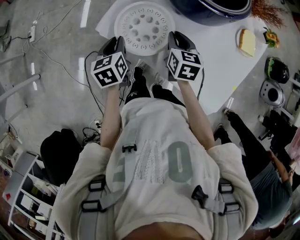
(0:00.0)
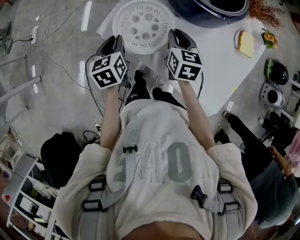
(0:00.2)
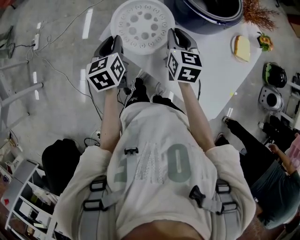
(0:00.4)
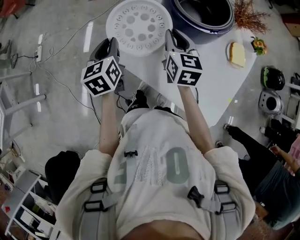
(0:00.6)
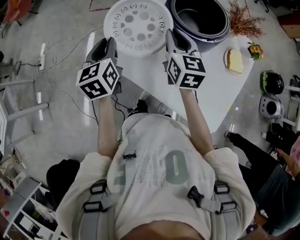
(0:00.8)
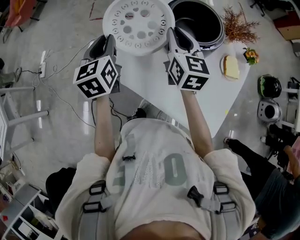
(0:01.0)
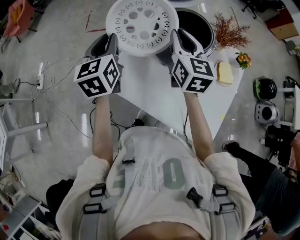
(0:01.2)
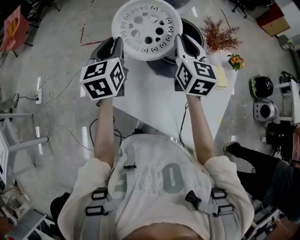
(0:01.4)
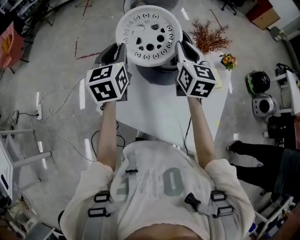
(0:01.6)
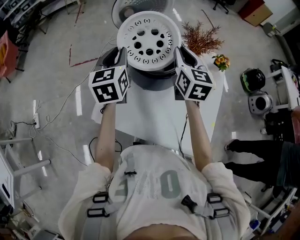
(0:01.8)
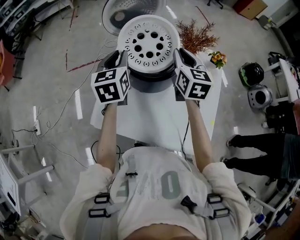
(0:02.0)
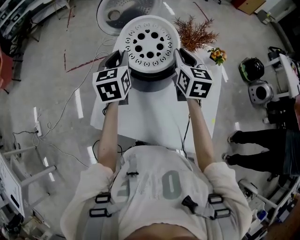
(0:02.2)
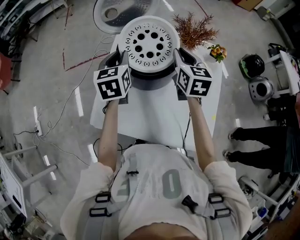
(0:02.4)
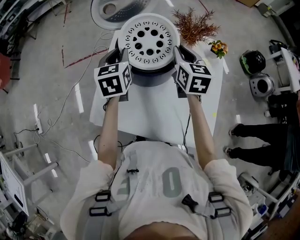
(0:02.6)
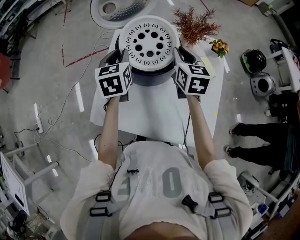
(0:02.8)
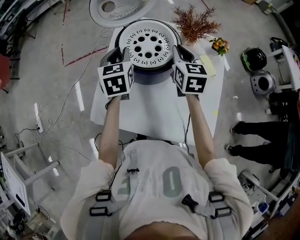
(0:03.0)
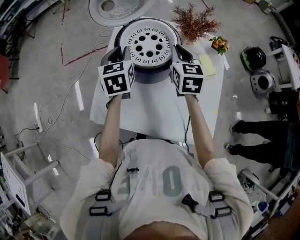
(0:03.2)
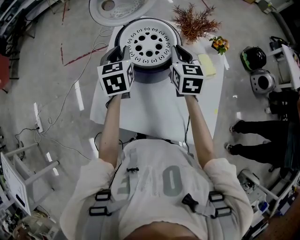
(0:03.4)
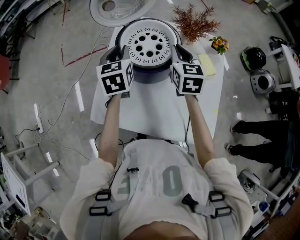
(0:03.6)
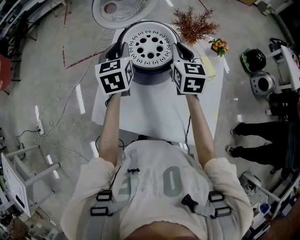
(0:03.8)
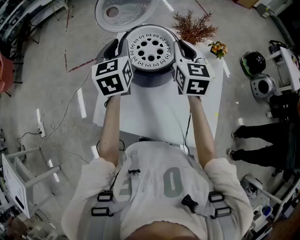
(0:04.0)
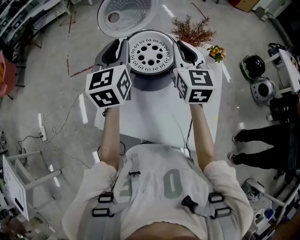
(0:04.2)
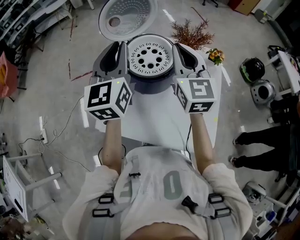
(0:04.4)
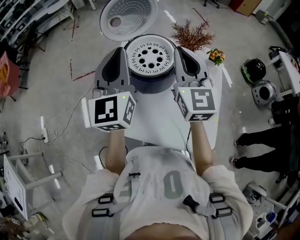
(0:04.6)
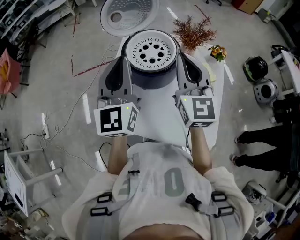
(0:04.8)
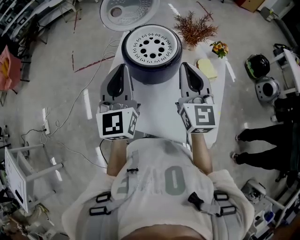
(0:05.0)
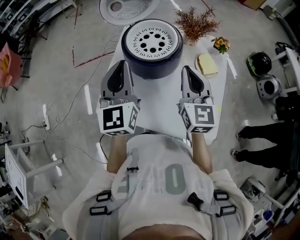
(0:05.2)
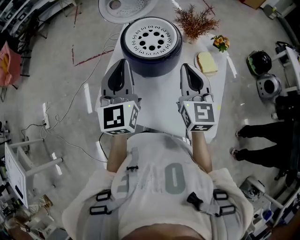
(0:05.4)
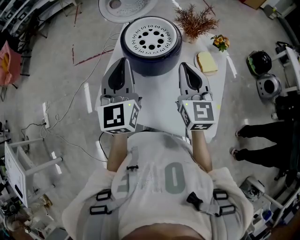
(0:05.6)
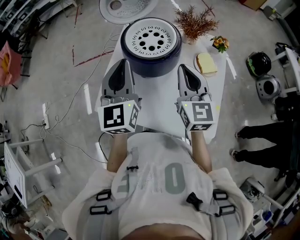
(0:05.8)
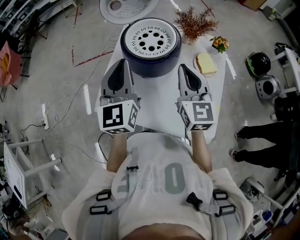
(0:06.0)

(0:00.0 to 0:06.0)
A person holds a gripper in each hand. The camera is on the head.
0:00.0 - 0:01.6: The left gripper shifts roughly 35 cm upward, forward and to the right, and swivels approximately 40 degrees; the right gripper heads upward and to the right, covering roughly 30 cm, and turns by some 30 degrees.
0:01.6 - 0:03.0: The right gripper moves downward and to the right, approximately 10 cm; the left gripper goes some 15 cm downward, to the right and forward.
0:03.0 - 0:04.4: The left gripper shifts roughly 20 cm upward, and tips its fingers upward by approximately 30 degrees, while the right gripper is displaced upward and backward by roughly 15 cm, and swivels roughly 30 degrees.
0:04.4 - 0:06.0: Both grippers travel together backward and downward, roughly 10 cm.

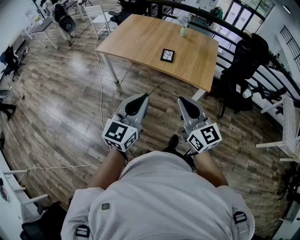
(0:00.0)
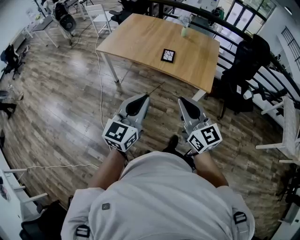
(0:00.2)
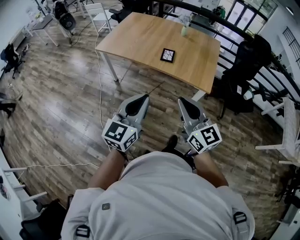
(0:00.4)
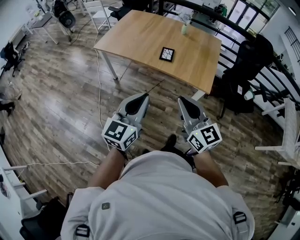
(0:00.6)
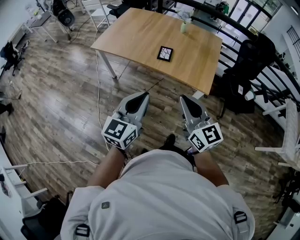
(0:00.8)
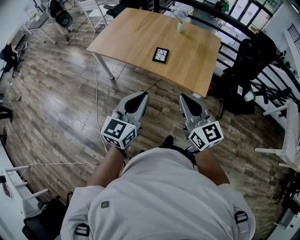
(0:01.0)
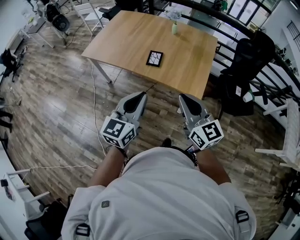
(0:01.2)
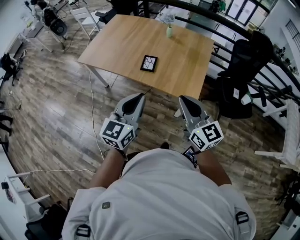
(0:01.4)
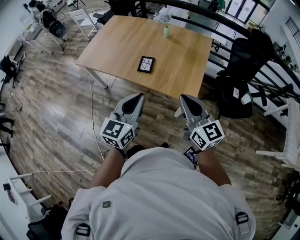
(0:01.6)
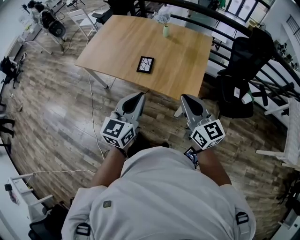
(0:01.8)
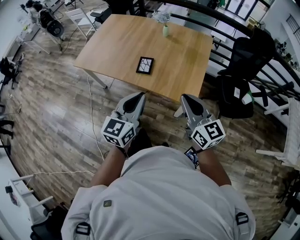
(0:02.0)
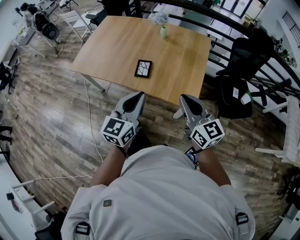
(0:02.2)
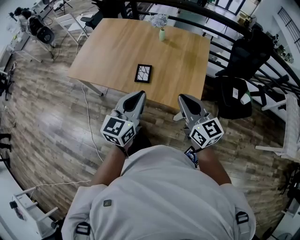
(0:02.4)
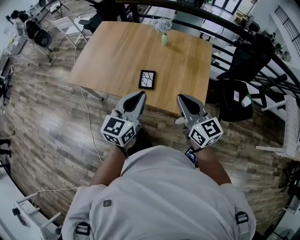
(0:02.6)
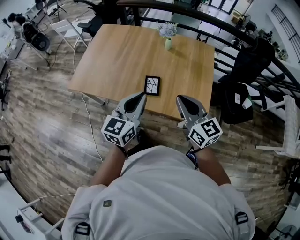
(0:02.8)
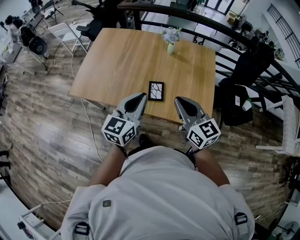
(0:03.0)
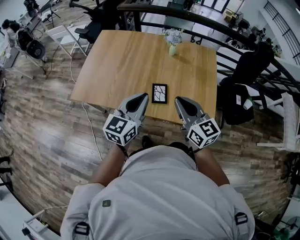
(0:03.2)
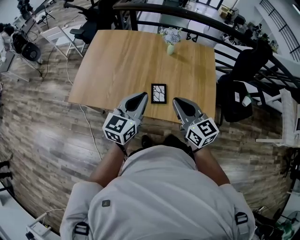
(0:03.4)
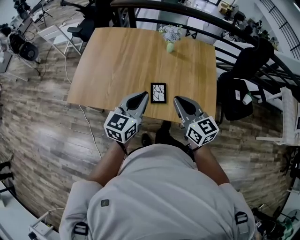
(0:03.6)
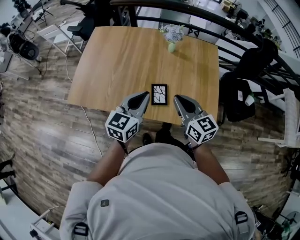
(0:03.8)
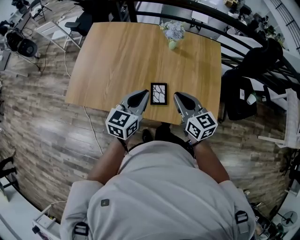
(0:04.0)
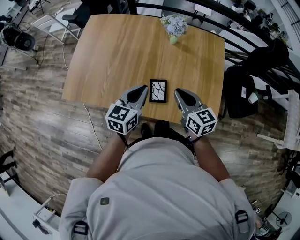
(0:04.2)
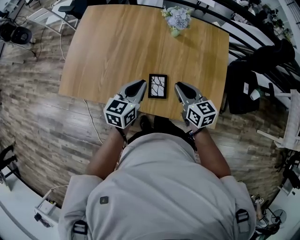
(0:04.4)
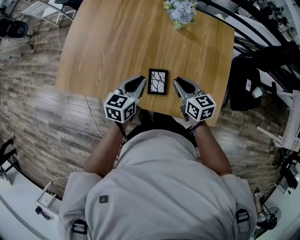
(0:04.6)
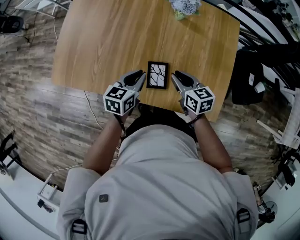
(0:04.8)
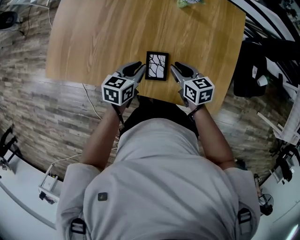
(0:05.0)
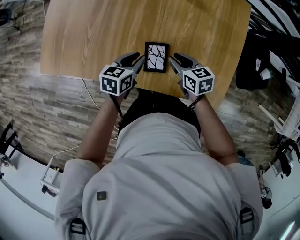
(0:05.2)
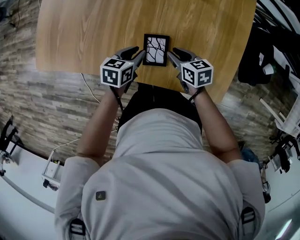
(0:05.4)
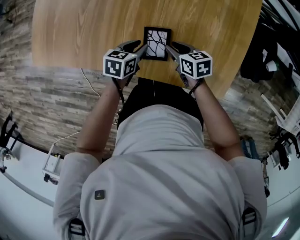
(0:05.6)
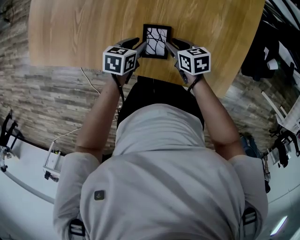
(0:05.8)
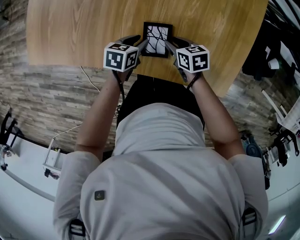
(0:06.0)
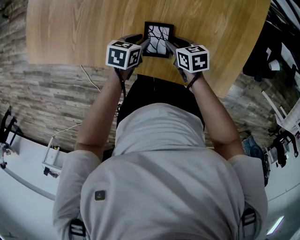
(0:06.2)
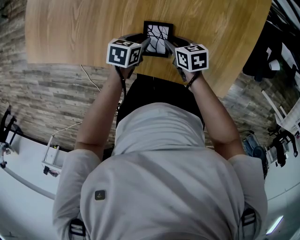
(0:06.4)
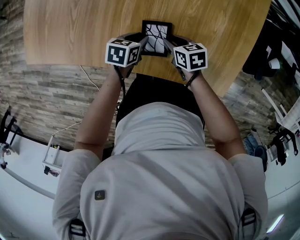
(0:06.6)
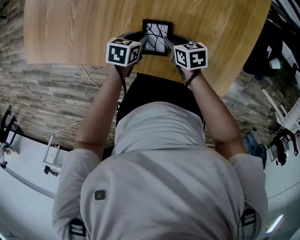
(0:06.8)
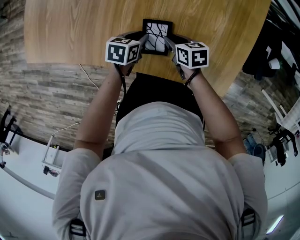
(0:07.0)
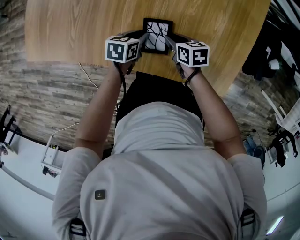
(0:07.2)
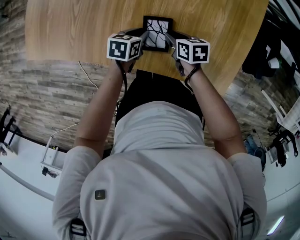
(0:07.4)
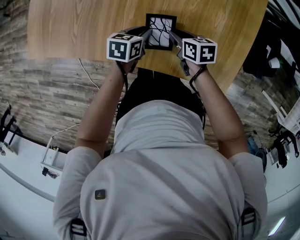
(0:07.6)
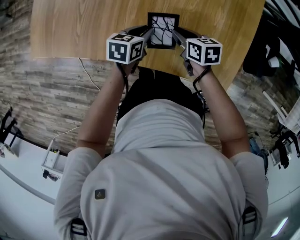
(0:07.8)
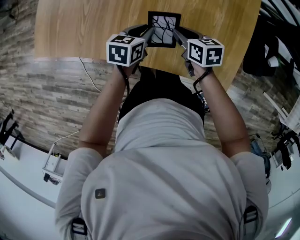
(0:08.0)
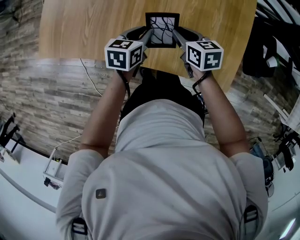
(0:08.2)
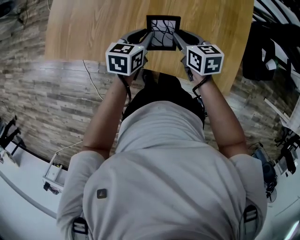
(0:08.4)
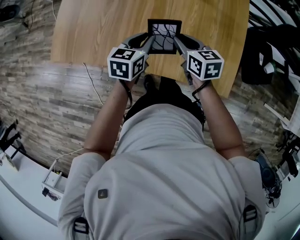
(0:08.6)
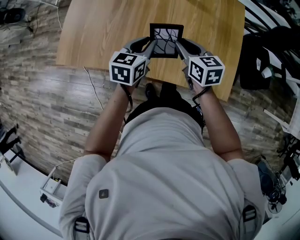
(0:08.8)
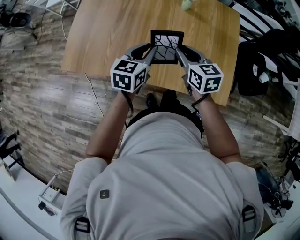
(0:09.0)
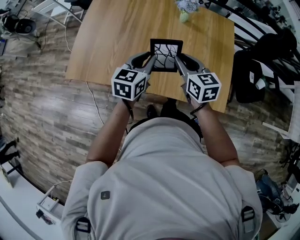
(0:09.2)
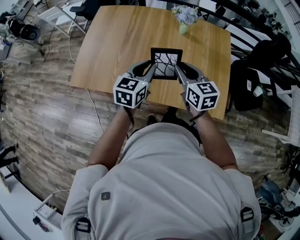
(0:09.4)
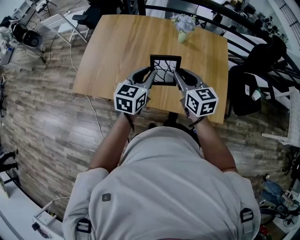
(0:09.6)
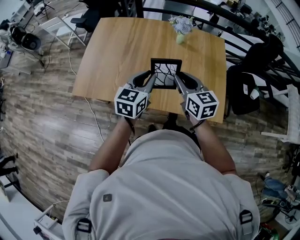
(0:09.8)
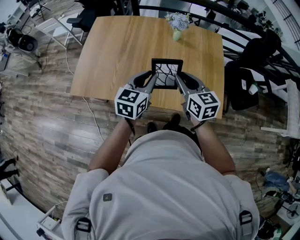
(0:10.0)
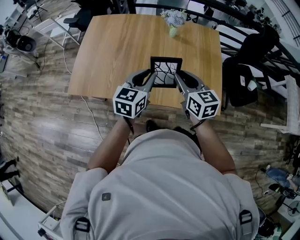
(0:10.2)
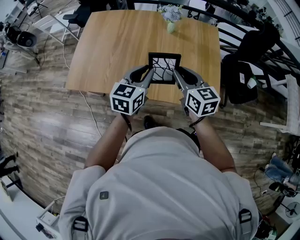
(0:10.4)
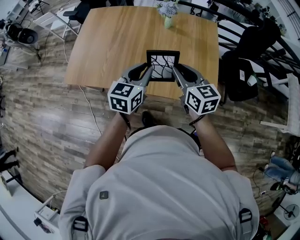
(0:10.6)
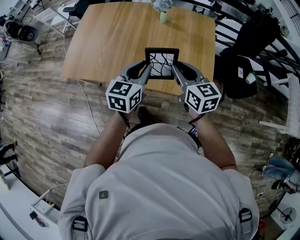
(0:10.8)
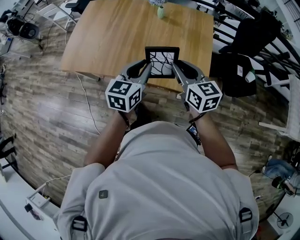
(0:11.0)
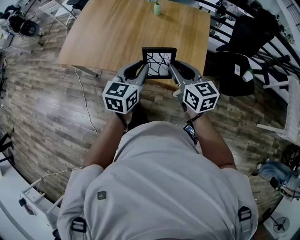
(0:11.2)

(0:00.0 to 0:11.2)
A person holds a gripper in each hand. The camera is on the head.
0:00.0 - 0:01.6: The left gripper goes about 30 cm forward and to the right. The right gripper moves to the right and forward, about 30 cm.
0:01.6 - 0:03.2: Both grippers travel together forward and to the left, some 30 cm.
0:03.2 - 0:04.8: The grippers both shift downward and forward by about 30 cm. The right gripper turns by some 30 degrees; the left gripper swivels some 30 degrees.
0:04.8 - 0:06.4: Both grippers travel together downward, roughly 20 cm. The left gripper rotates approximately 30 degrees, while the right gripper changes its angle by about 30 degrees.
0:06.4 - 0:08.0: The two grippers go roughly 10 cm upward.
0:08.0 - 0:09.6: Both grippers move upward, approximately 30 cm. The right gripper turns by approximately 40 degrees; the left gripper turns by roughly 30 degrees.
0:09.6 - 0:11.2: The grippers both shift to the right and backward by roughly 25 cm.

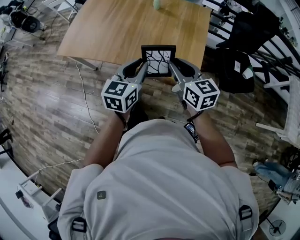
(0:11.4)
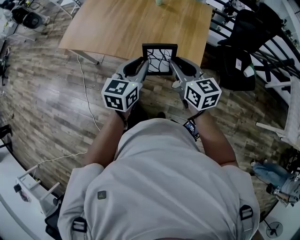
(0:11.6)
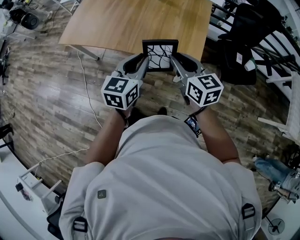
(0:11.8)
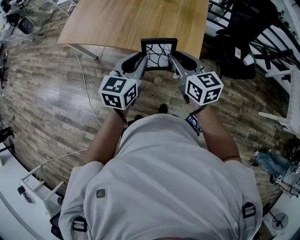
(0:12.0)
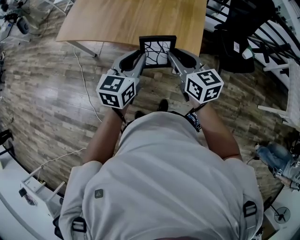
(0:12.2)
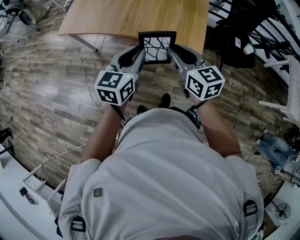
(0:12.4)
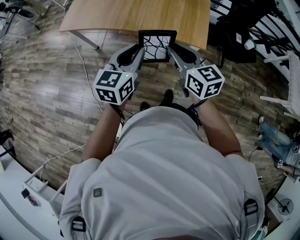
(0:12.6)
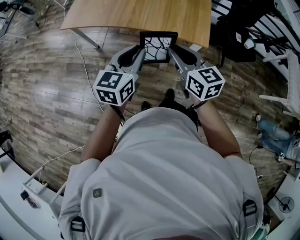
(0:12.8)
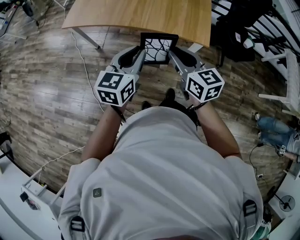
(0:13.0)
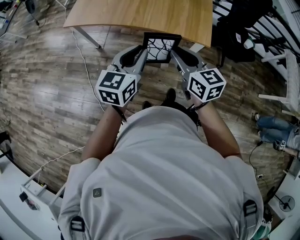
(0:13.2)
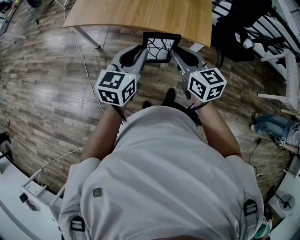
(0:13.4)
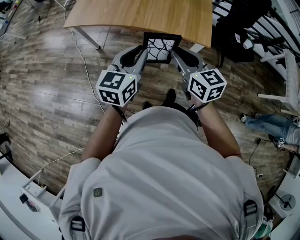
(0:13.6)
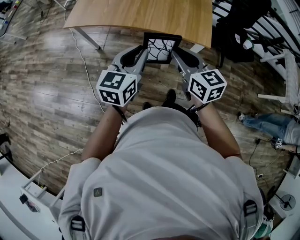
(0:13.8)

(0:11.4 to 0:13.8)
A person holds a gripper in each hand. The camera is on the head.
0:11.4 - 0:12.6: The two grippers go roughly 20 cm backward and to the left.
0:12.6 - 0:13.8: The grippers both shift to the left by roughly 5 cm.

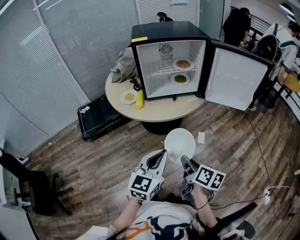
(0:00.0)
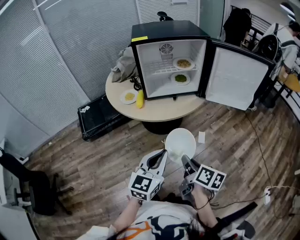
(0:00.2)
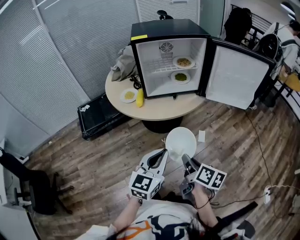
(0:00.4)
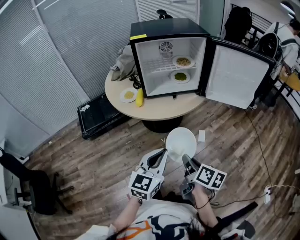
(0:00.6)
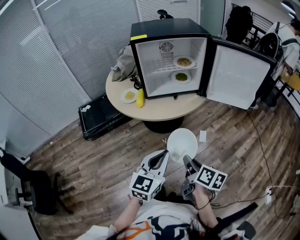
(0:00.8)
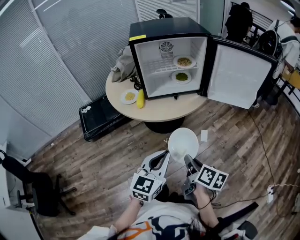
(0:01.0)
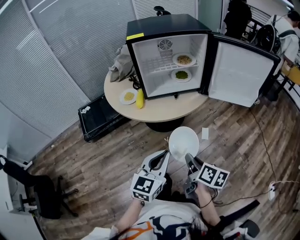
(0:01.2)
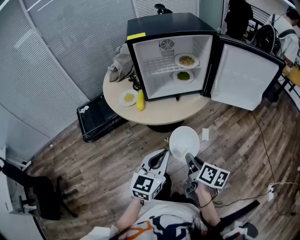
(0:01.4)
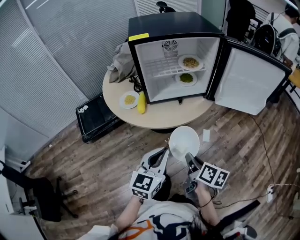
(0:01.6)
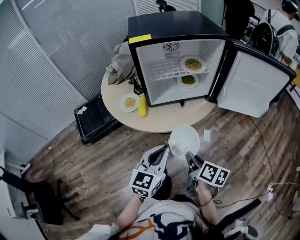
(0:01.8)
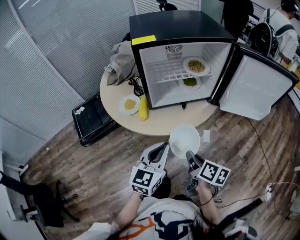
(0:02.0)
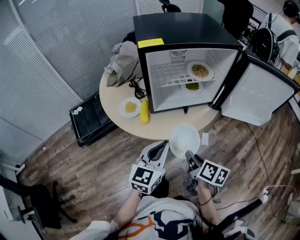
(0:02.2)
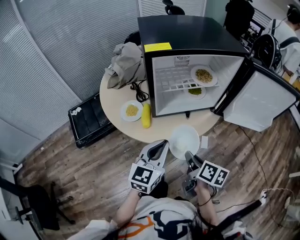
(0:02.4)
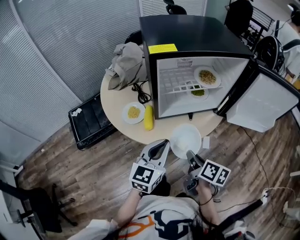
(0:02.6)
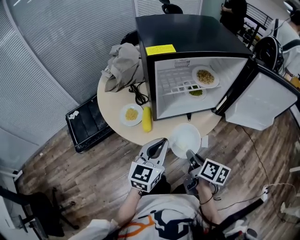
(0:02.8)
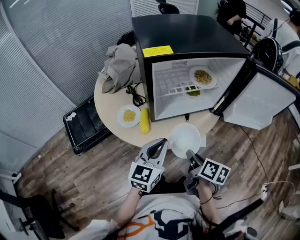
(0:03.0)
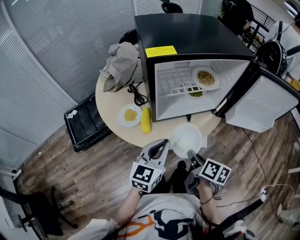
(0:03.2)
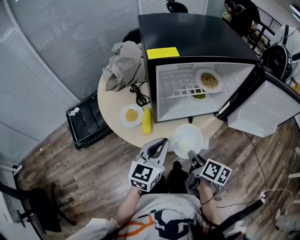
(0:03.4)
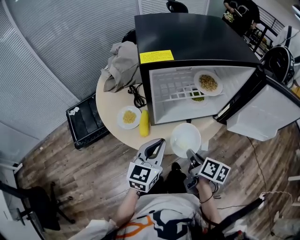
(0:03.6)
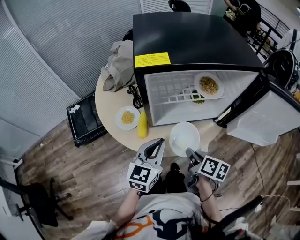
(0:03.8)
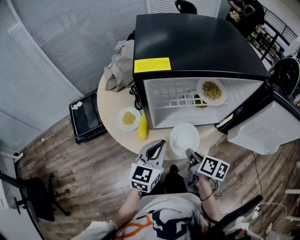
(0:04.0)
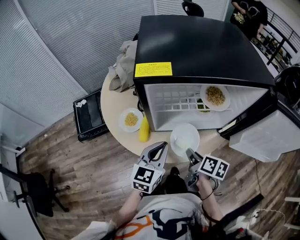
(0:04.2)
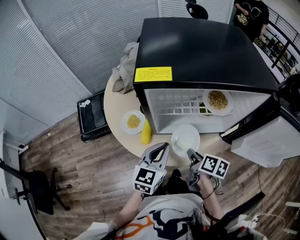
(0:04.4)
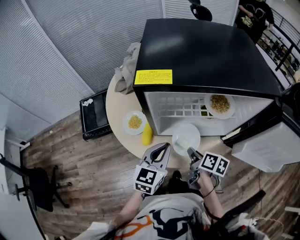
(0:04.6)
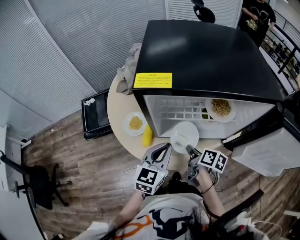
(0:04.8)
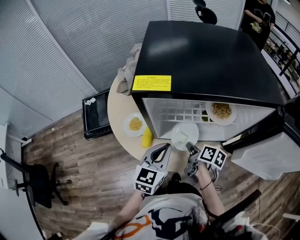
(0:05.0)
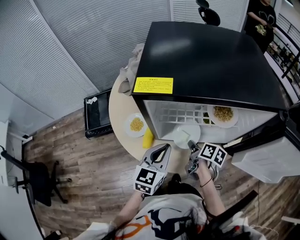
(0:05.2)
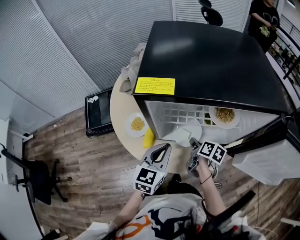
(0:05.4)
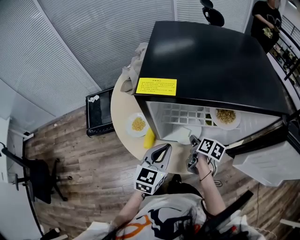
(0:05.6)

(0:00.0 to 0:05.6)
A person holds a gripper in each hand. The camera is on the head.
0:00.0 - 0:01.4: Both grippers move forward, roughly 5 cm.
0:01.4 - 0:02.8: The two grippers go approximately 20 cm forward and to the left.
0:02.8 - 0:04.2: The two grippers go about 10 cm forward.
0:04.2 - 0:05.6: The right gripper heads forward and downward, covering approximately 15 cm.
